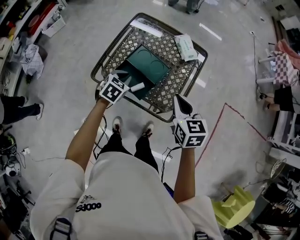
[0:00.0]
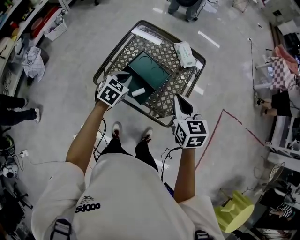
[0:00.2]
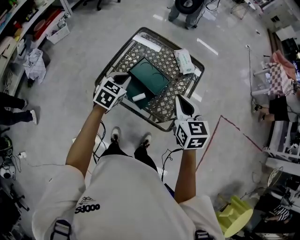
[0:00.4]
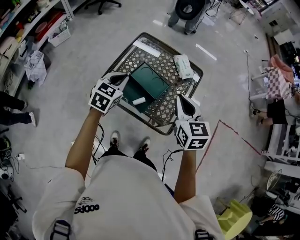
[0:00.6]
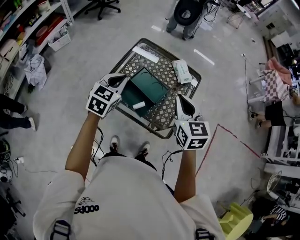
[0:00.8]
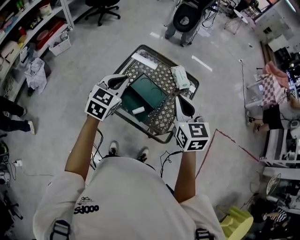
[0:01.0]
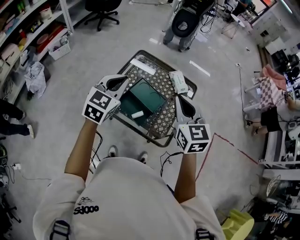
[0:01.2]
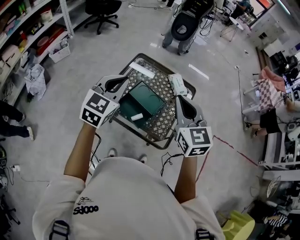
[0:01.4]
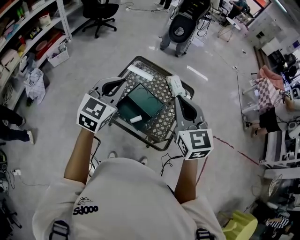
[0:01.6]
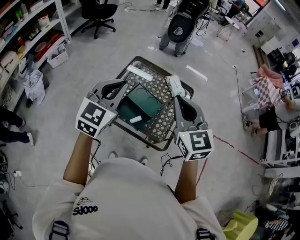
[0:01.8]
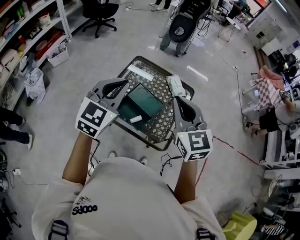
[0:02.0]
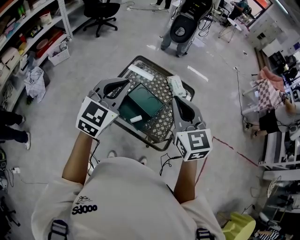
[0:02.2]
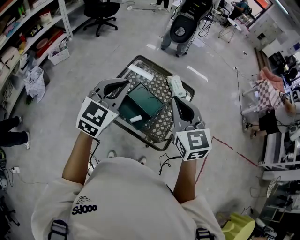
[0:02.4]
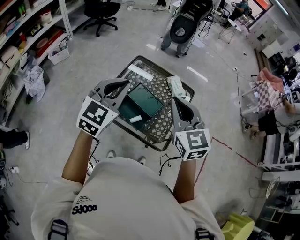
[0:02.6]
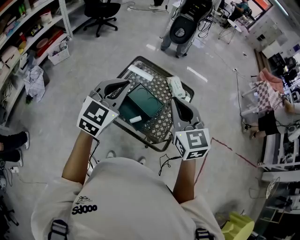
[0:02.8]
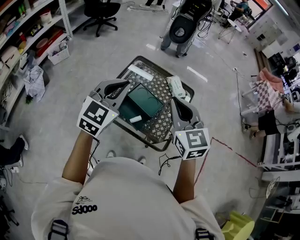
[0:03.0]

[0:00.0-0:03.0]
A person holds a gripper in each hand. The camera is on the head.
0:00.0 to 0:01.6: The two grippers go approximately 25 cm upward. The right gripper rotates roughly 30 degrees. The left gripper points its fingers some 40 degrees further upward.
0:01.6 to 0:03.0: There are only small adjustments of the grippers.

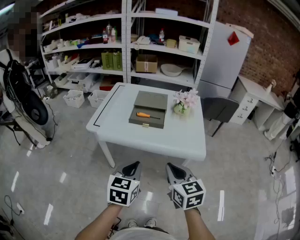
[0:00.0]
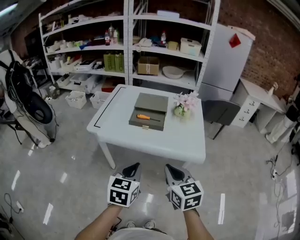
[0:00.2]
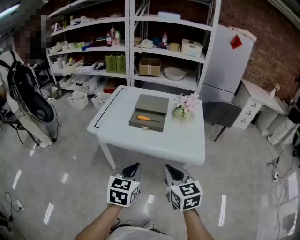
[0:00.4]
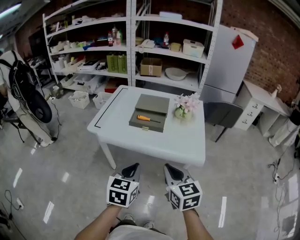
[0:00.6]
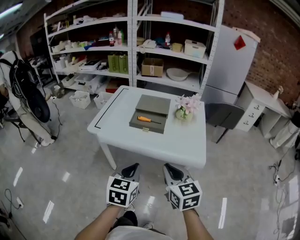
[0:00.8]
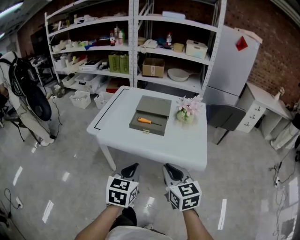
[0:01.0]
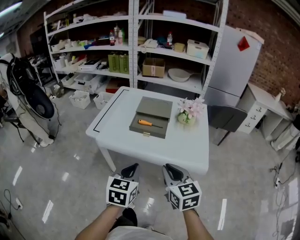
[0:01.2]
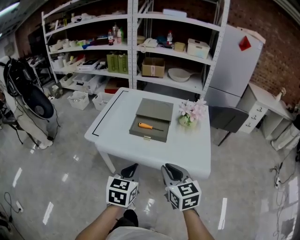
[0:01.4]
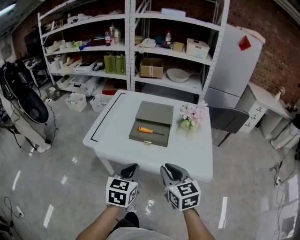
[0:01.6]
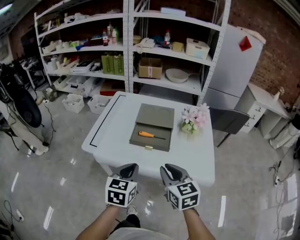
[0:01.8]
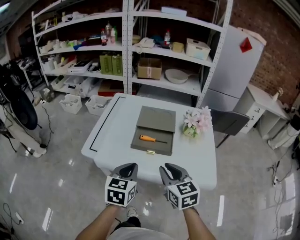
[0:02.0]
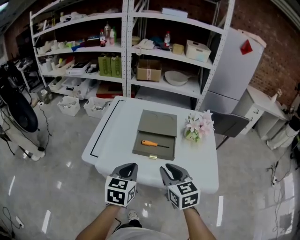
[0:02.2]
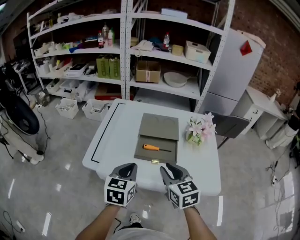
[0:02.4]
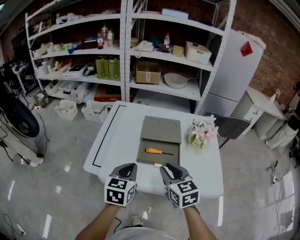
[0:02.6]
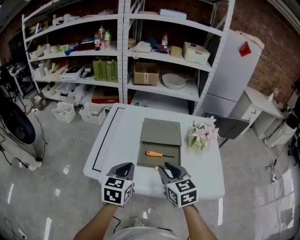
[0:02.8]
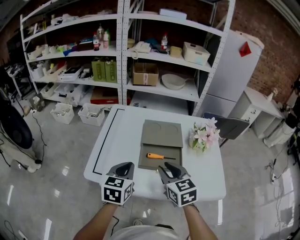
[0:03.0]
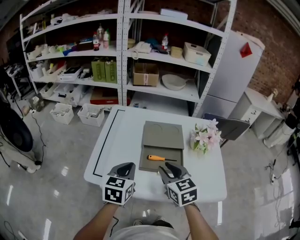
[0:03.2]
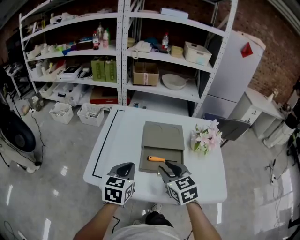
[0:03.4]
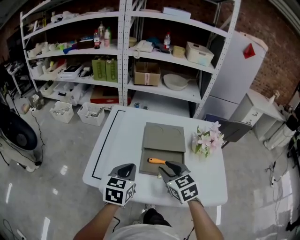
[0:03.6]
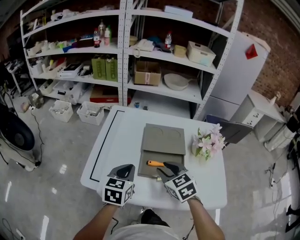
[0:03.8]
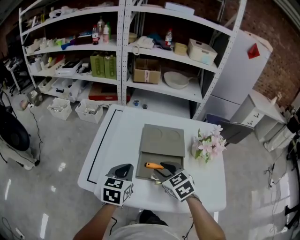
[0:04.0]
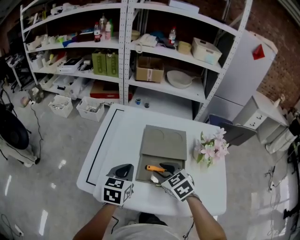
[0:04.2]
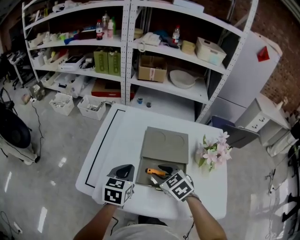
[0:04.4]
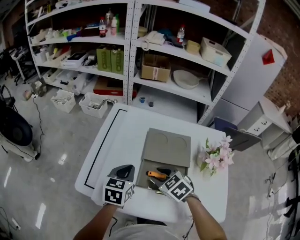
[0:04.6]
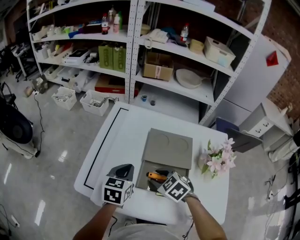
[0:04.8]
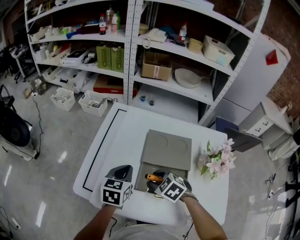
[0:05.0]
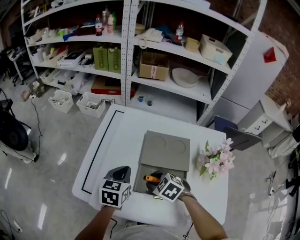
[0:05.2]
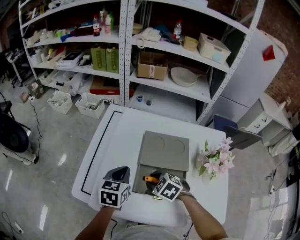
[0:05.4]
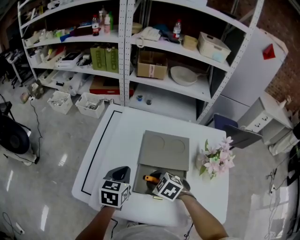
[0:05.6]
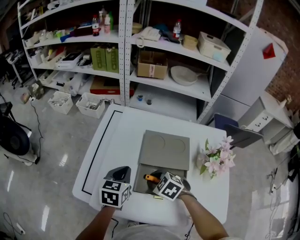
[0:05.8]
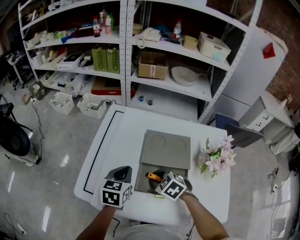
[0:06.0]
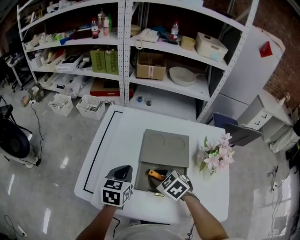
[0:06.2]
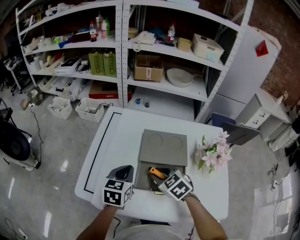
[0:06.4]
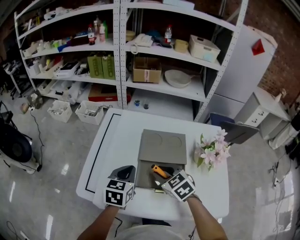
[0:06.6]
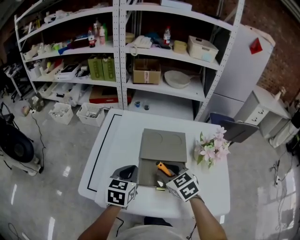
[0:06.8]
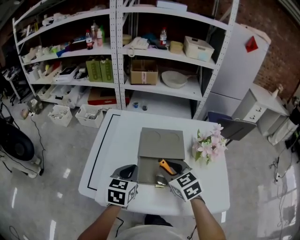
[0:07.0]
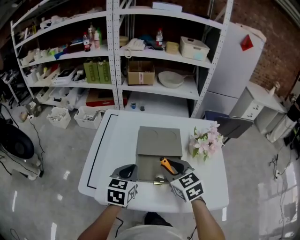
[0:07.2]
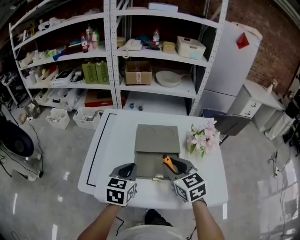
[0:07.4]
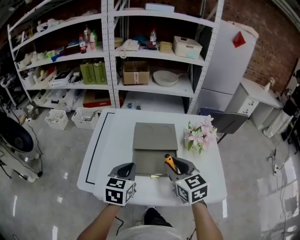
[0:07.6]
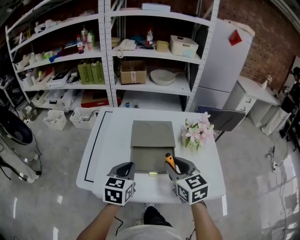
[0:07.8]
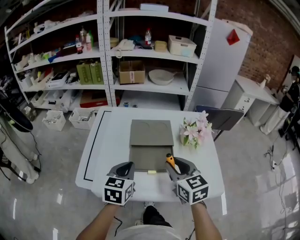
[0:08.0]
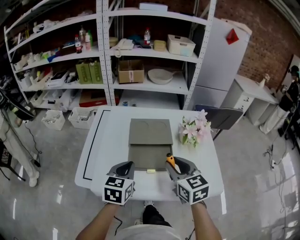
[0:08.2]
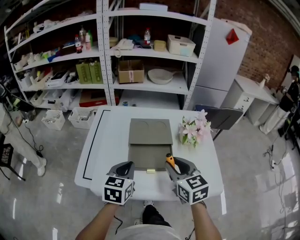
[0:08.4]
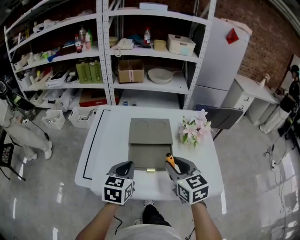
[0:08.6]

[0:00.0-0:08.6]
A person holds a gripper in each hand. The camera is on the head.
0:00.0 to 0:01.4: The grippers both shift forward by some 10 cm.
0:01.4 to 0:02.8: Both grippers travel together forward and to the left, approximately 25 cm.
0:02.8 to 0:04.4: Both grippers move forward and downward, roughly 15 cm. The right gripper swivels about 30 degrees.
0:04.4 to 0:05.8: The right gripper is displaced downward by some 5 cm.
0:05.8 to 0:07.2: The right gripper heads upward, covering about 15 cm, and rotates roughly 40 degrees. The left gripper is displaced backward and upward by approximately 10 cm.
0:07.2 to 0:08.6: The left gripper travels backward by about 5 cm; the right gripper goes about 10 cm backward and to the right.

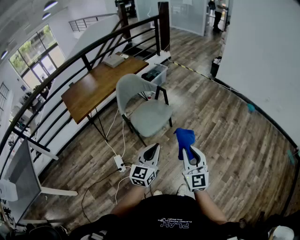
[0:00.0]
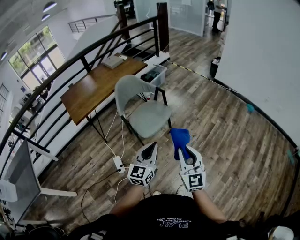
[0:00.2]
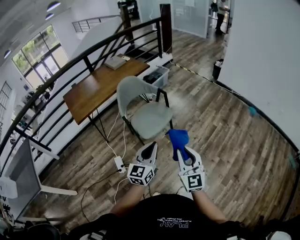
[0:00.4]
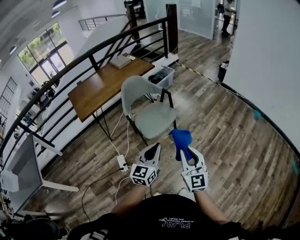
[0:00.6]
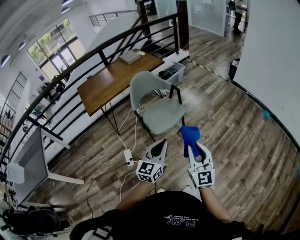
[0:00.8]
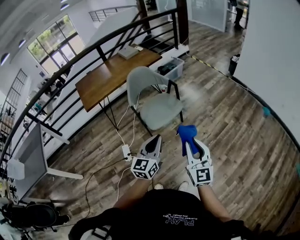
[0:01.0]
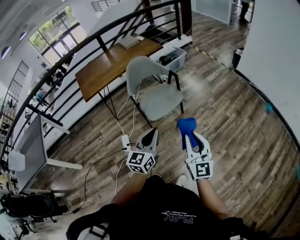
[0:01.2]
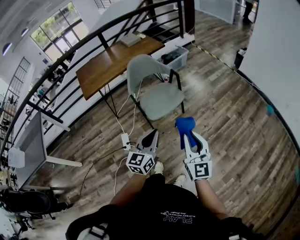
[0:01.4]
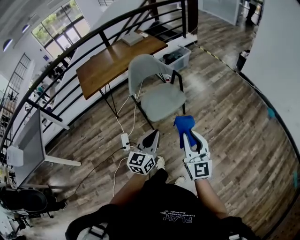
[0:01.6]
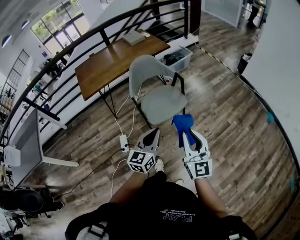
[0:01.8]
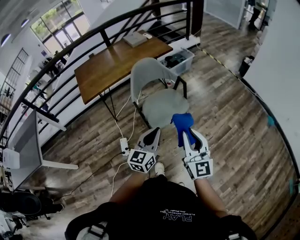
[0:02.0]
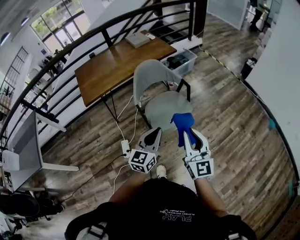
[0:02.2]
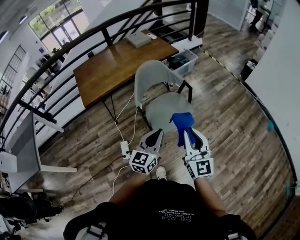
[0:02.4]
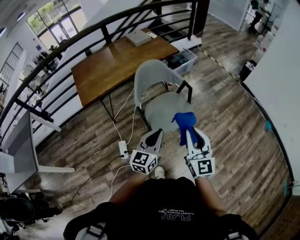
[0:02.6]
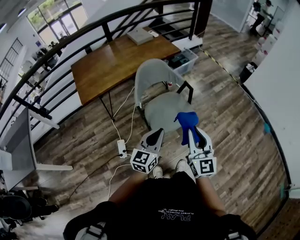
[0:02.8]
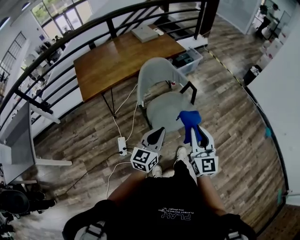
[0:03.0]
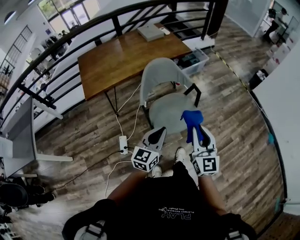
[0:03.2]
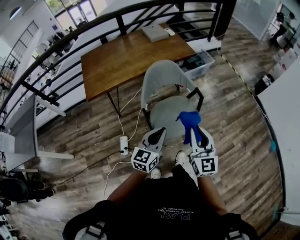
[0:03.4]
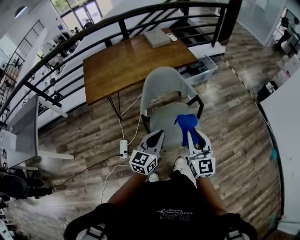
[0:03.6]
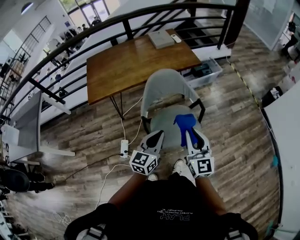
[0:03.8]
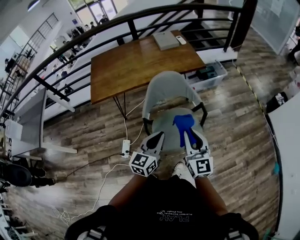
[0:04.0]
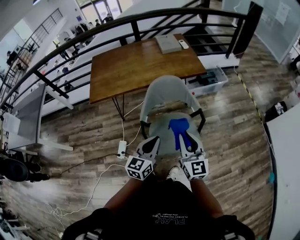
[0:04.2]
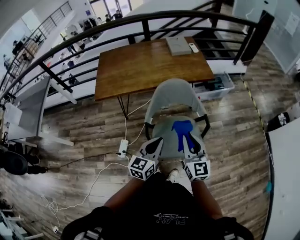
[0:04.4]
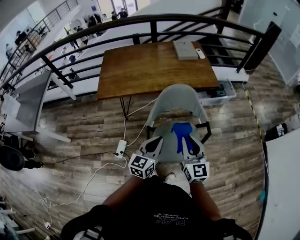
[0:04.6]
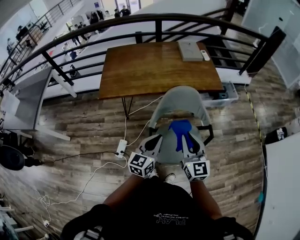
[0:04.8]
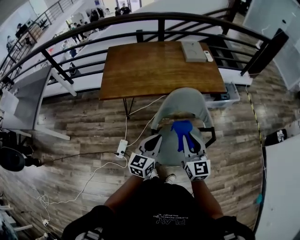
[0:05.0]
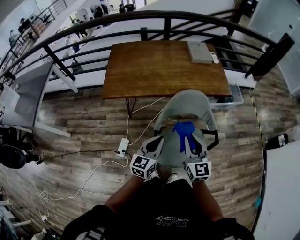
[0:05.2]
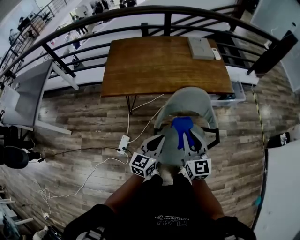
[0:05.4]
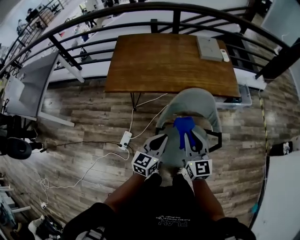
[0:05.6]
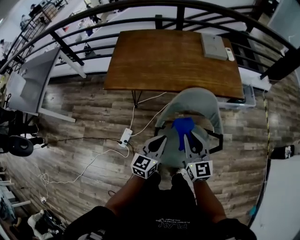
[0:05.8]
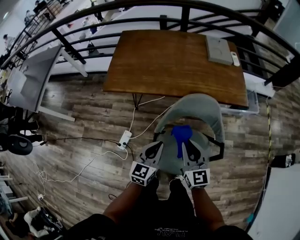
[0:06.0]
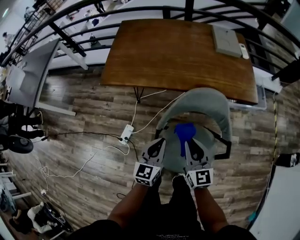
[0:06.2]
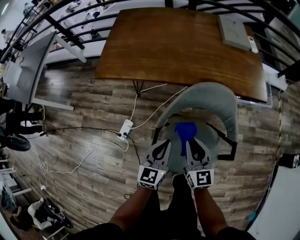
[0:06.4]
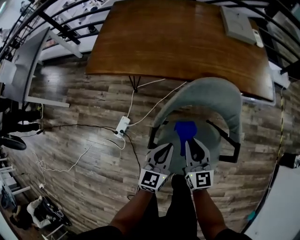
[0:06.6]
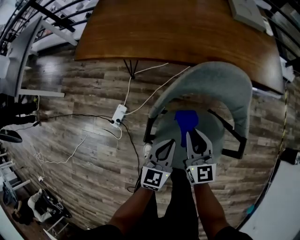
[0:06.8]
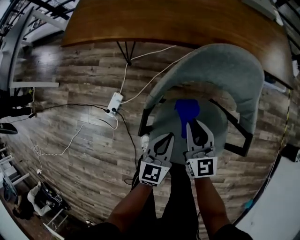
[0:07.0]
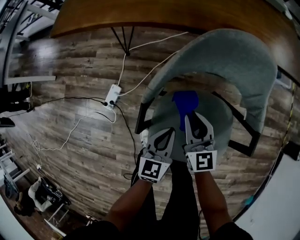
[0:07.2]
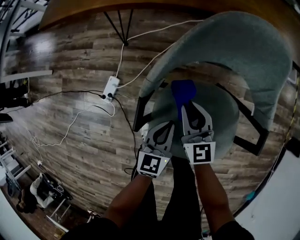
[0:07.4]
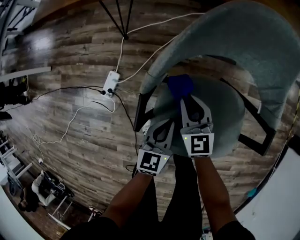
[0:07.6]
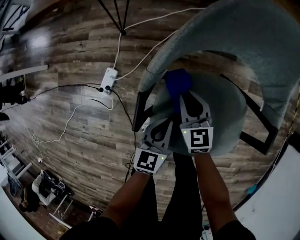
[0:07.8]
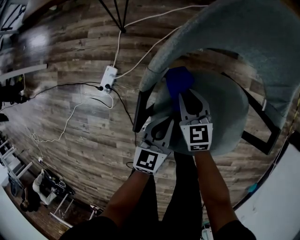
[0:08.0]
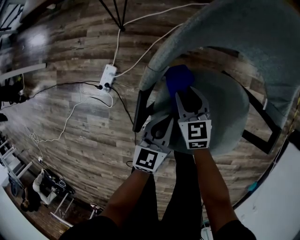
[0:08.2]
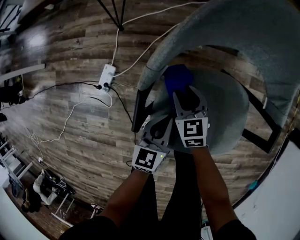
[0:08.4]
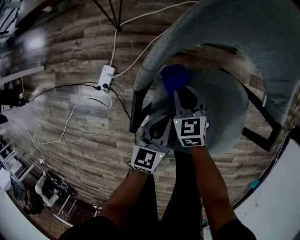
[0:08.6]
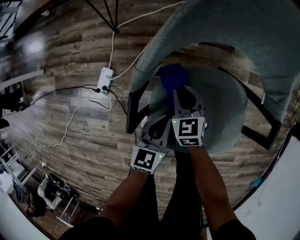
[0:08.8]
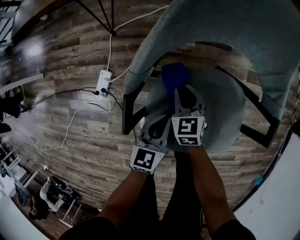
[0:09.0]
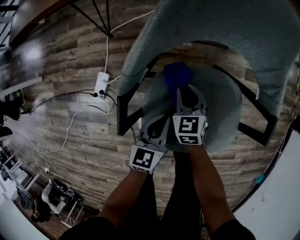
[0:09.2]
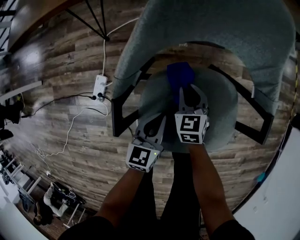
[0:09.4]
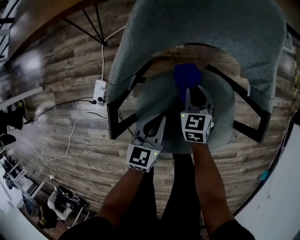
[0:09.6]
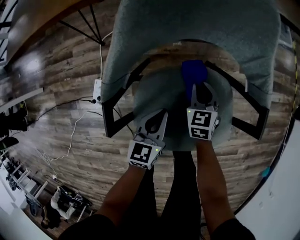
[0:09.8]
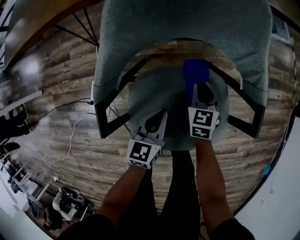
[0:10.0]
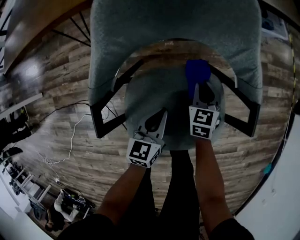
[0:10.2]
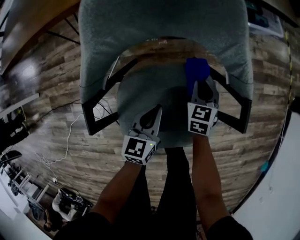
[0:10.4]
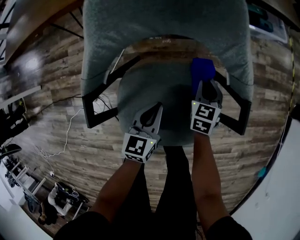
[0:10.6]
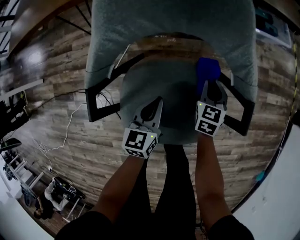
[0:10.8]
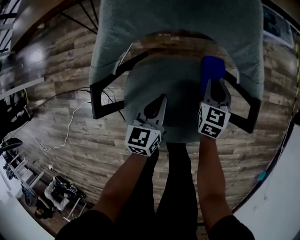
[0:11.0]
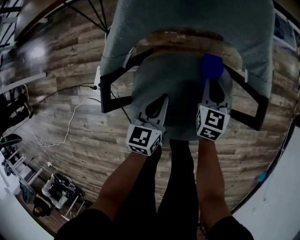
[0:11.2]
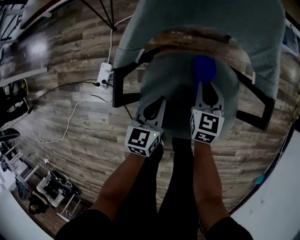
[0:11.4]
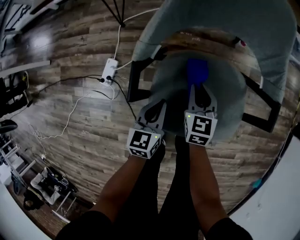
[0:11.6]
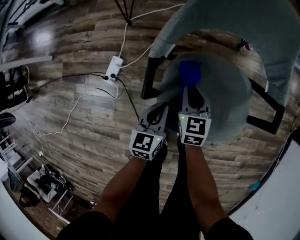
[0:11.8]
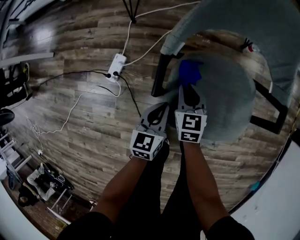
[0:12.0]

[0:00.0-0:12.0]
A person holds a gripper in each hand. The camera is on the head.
0:00.0 to 0:01.6: The right gripper shifts about 10 cm forward. The left gripper shifts by approximately 5 cm.
0:01.6 to 0:03.0: The two grippers go some 20 cm forward and to the left.
0:03.0 to 0:04.4: Both grippers move forward, some 20 cm. The left gripper turns by roughly 20 degrees. Meanwhile the right gripper turns by some 20 degrees.
0:04.4 to 0:06.0: The right gripper is displaced forward, to the left and downward by some 20 cm, and turns by some 20 degrees, while the left gripper heads forward, downward and to the left, covering roughly 20 cm.
0:06.0 to 0:07.6: Both grippers move downward, about 40 cm.
0:07.6 to 0:09.0: The right gripper is displaced downward by roughly 5 cm.
0:09.0 to 0:10.4: The right gripper is displaced to the right by roughly 25 cm, and changes its angle by about 20 degrees. The left gripper is displaced to the right and forward by some 10 cm.
0:10.4 to 0:12.0: Both grippers move to the left and backward, about 25 cm. The right gripper rotates approximately 20 degrees.
